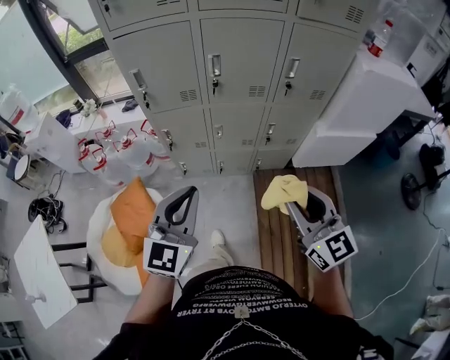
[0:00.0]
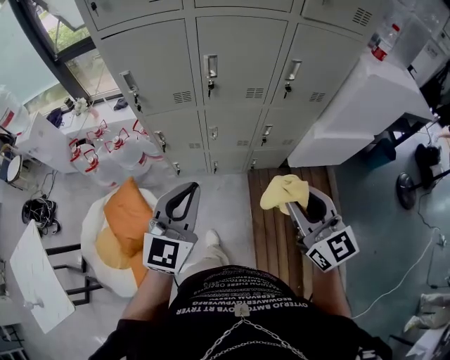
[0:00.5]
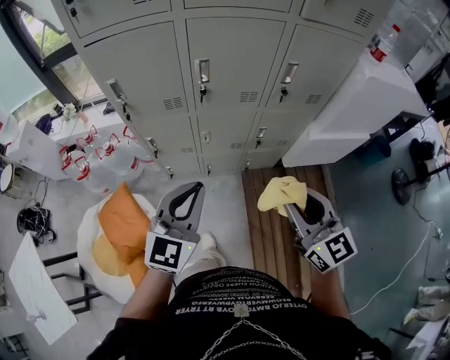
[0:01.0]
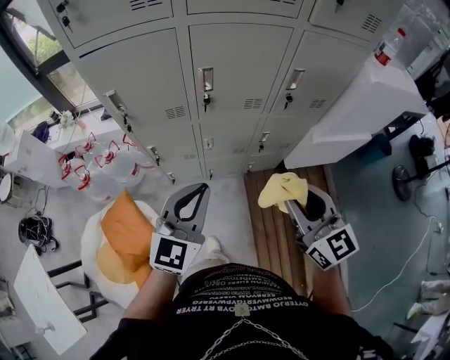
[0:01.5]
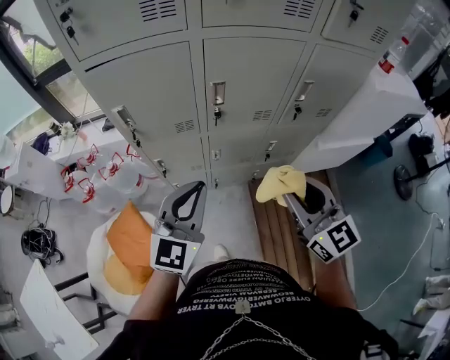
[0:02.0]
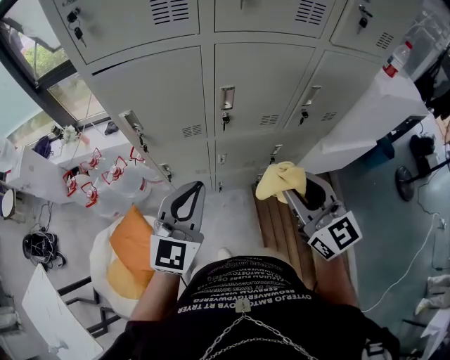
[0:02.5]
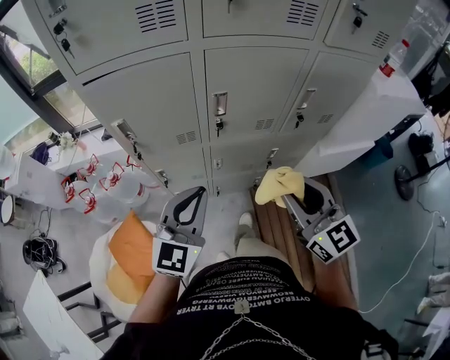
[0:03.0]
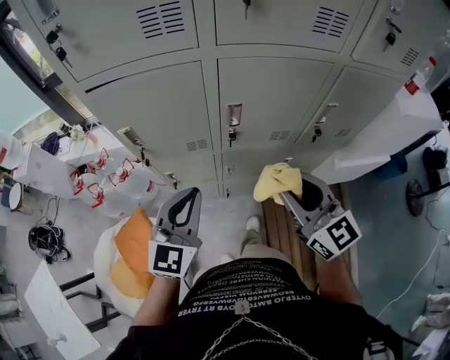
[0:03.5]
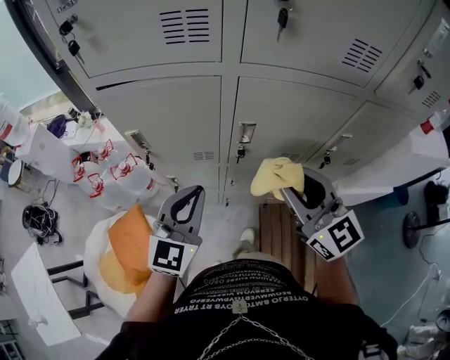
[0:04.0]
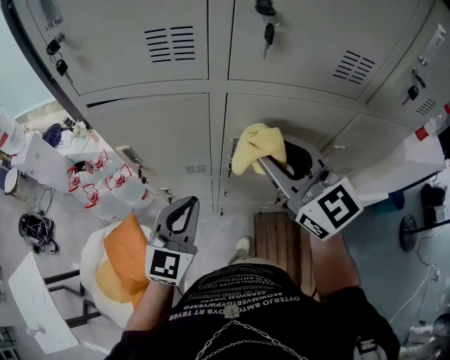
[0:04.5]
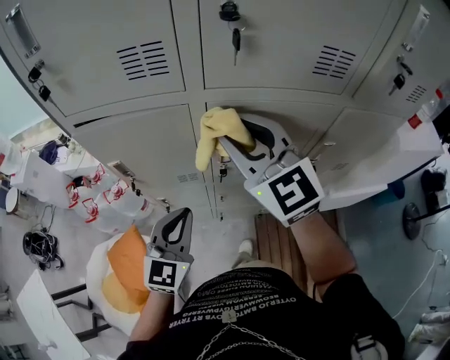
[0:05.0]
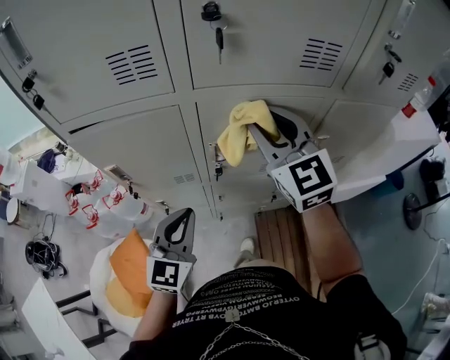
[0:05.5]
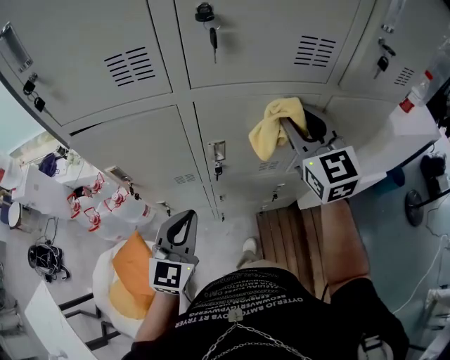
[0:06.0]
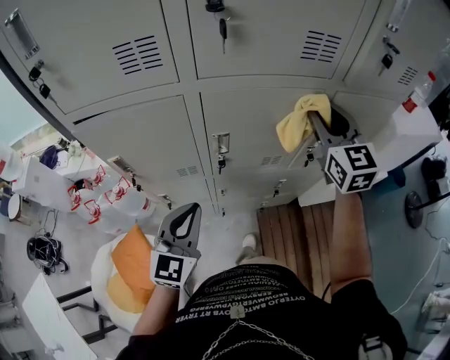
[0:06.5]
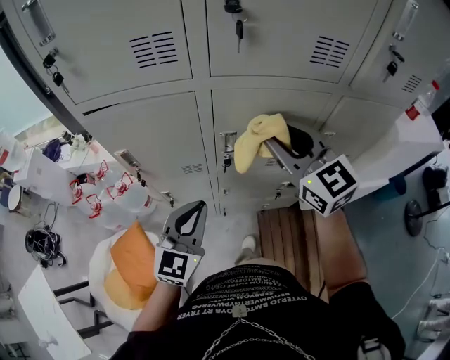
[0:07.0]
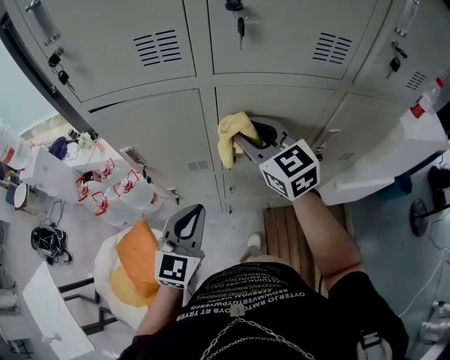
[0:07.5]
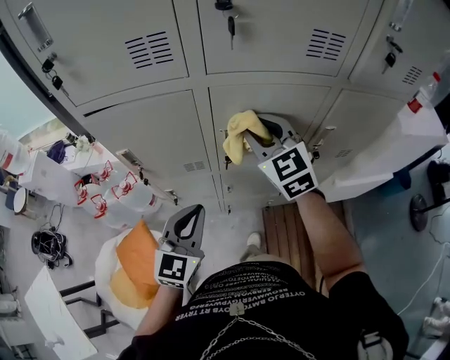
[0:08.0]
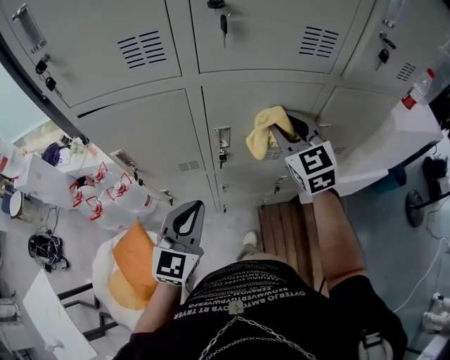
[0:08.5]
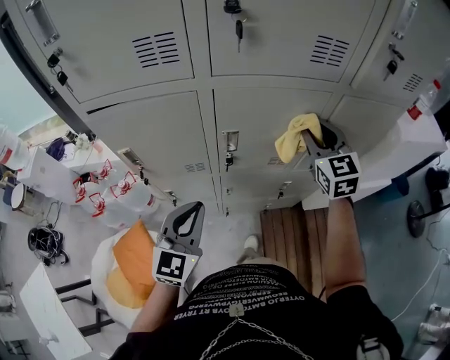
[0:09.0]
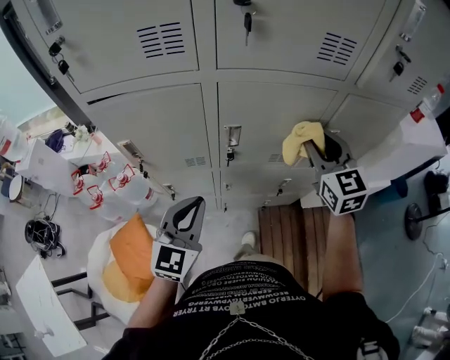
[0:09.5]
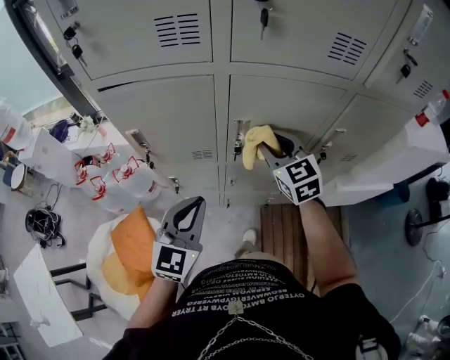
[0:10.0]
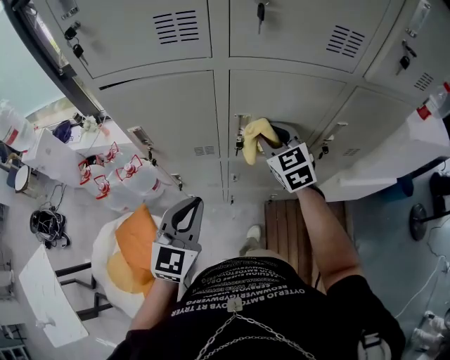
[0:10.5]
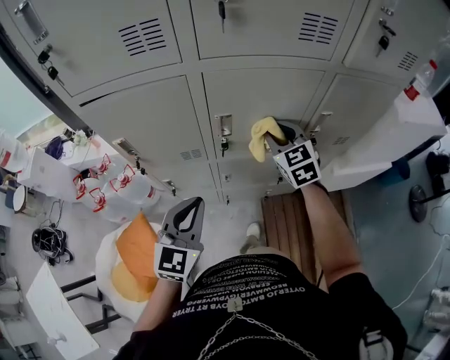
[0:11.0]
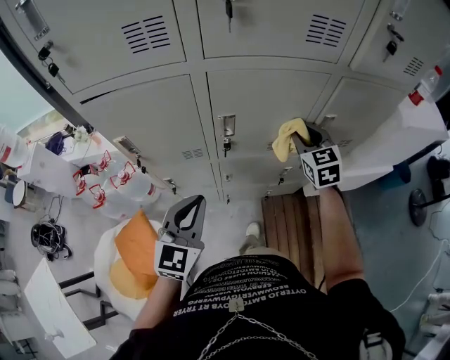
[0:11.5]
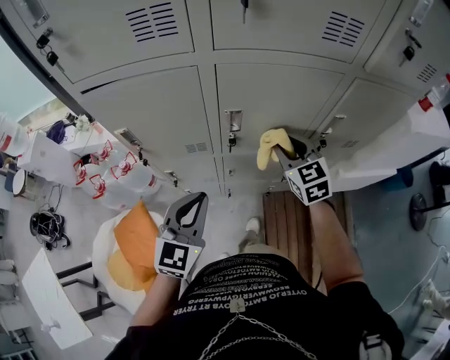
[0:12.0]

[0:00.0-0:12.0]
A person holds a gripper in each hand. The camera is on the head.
0:00.0 to 0:02.0: The two grippers go some 20 cm forward.
0:02.0 to 0:04.0: Both grippers travel together forward, some 15 cm.
0:04.0 to 0:06.0: The right gripper goes some 15 cm forward, to the right and upward, and swivels about 30 degrees.
0:06.0 to 0:08.0: The right gripper heads to the left and downward, covering roughly 15 cm.
0:08.0 to 0:10.0: The right gripper goes approximately 5 cm downward, and travels to the right and back again, some 15 cm each way.
0:10.0 to 0:12.0: The right gripper shifts about 10 cm to the right and downward.

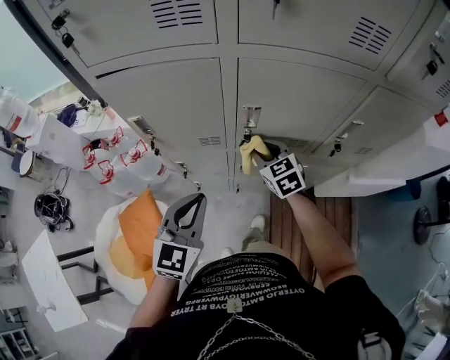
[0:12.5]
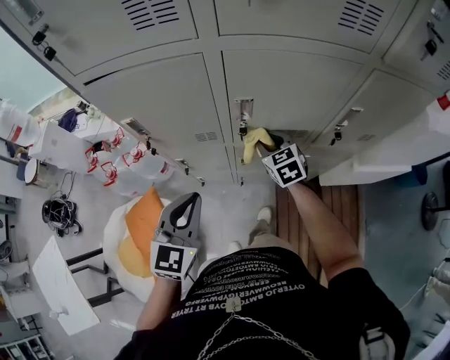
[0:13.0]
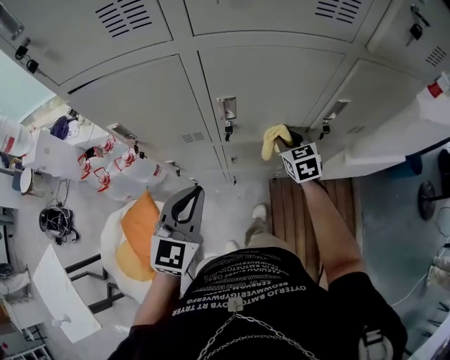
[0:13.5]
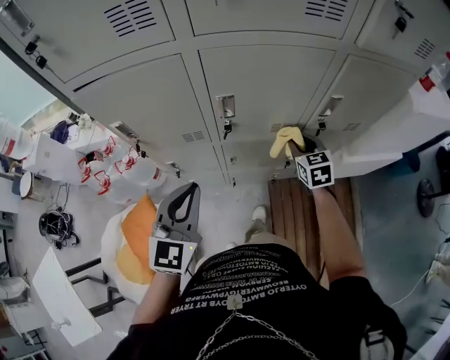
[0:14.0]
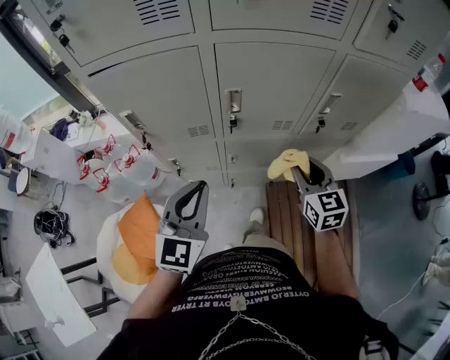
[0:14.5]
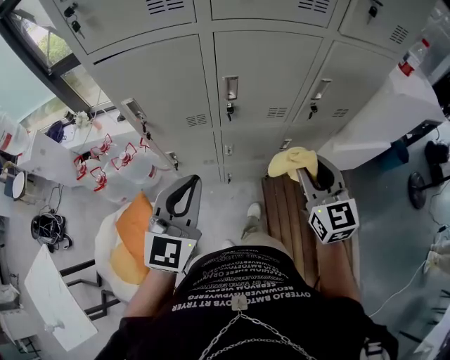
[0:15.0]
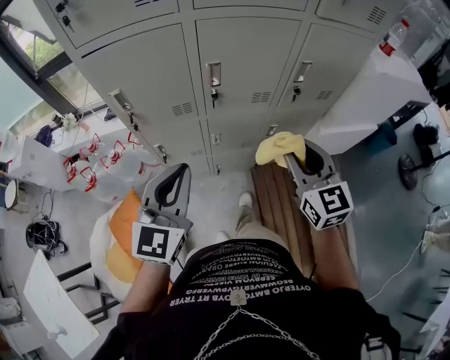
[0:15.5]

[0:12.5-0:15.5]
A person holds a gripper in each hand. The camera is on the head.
0:12.5 to 0:14.0: The right gripper moves to the right, about 20 cm, and rotates roughly 20 degrees.
0:14.0 to 0:15.5: The left gripper is displaced backward by roughly 10 cm; the right gripper moves backward and upward, some 30 cm, and turns by about 20 degrees.

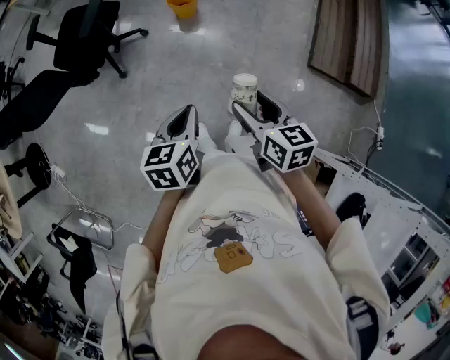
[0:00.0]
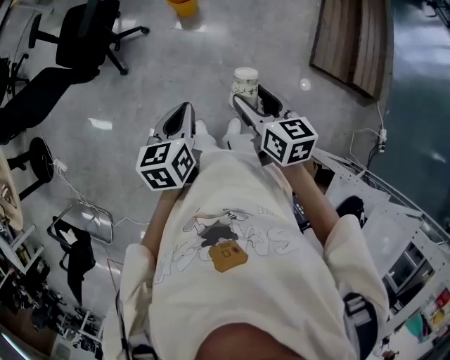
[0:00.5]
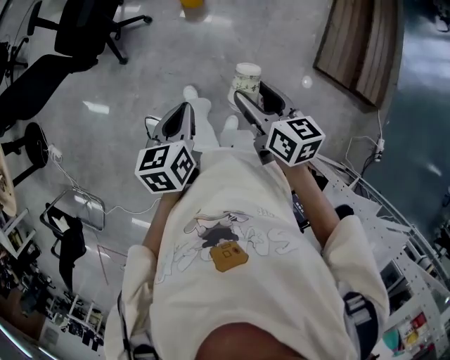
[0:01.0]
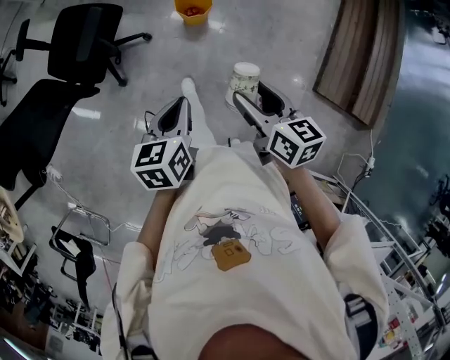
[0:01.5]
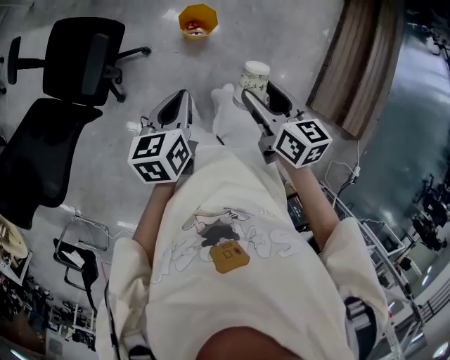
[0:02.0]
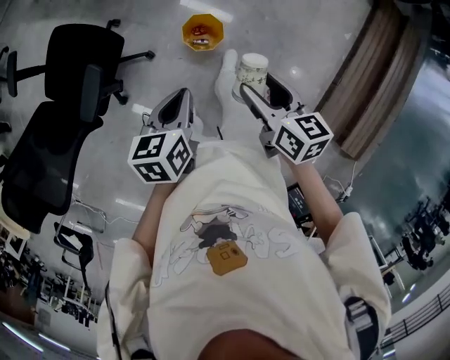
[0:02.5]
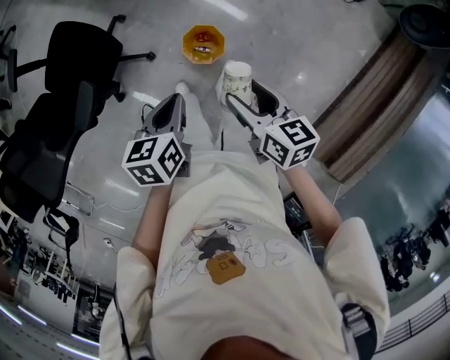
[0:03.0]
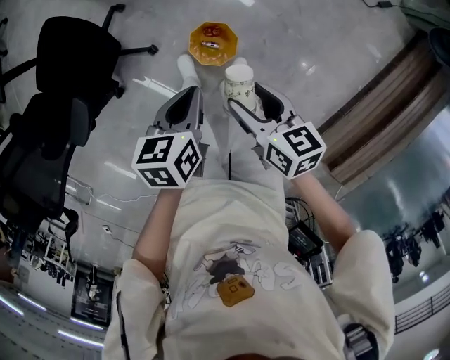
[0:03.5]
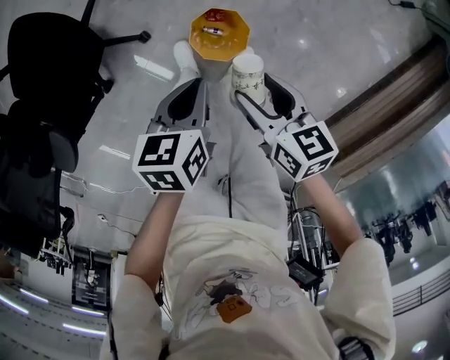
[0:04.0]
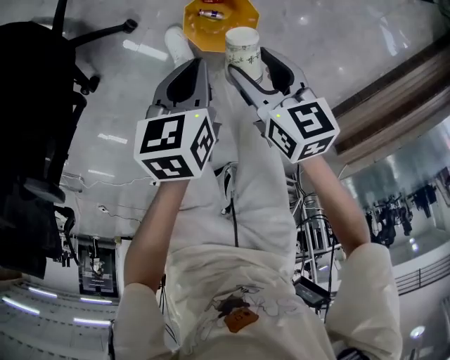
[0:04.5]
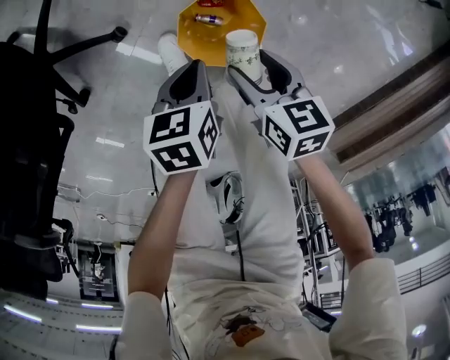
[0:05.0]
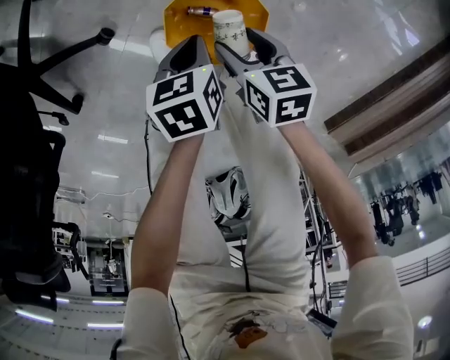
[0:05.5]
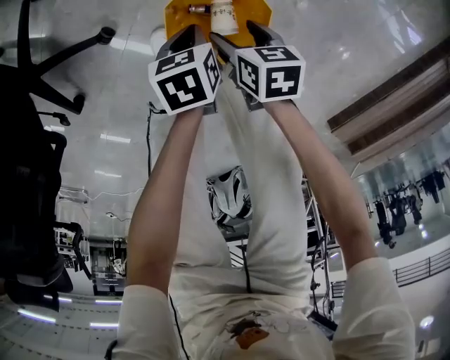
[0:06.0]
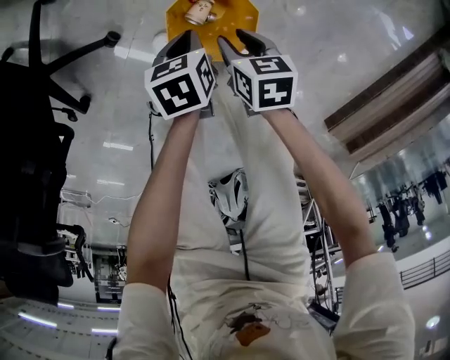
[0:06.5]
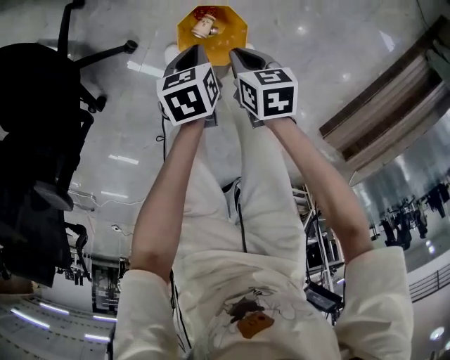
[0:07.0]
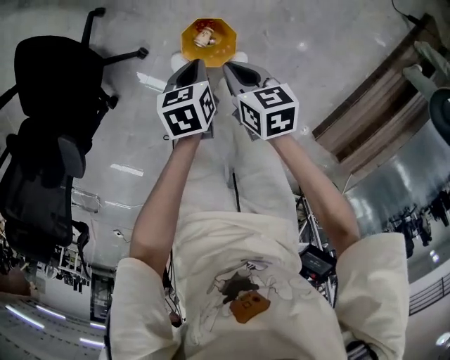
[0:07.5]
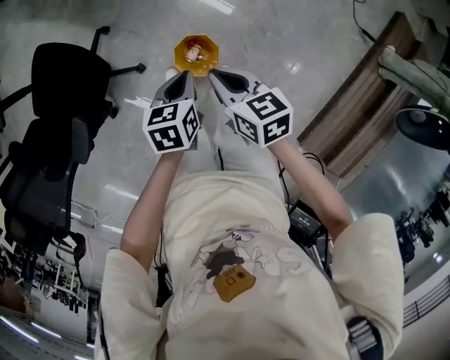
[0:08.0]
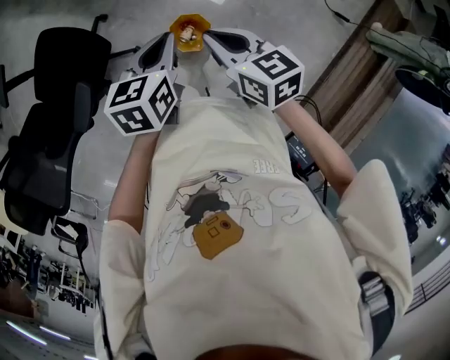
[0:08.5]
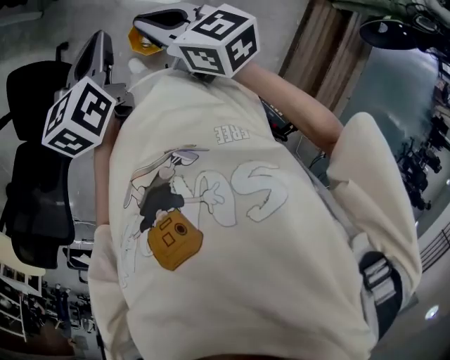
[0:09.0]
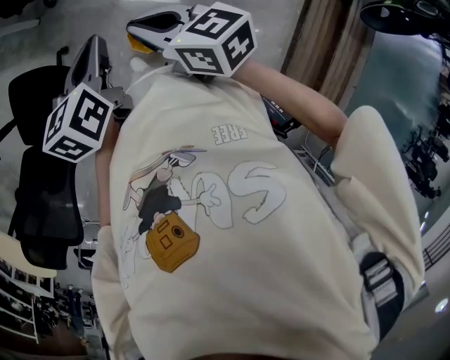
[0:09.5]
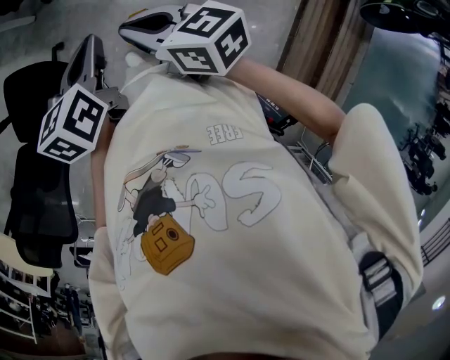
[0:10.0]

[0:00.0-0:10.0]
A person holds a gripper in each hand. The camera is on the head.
0:00.0 to 0:02.0: The two grippers travel together, forward, about 50 cm.
0:02.0 to 0:04.0: The grippers both shift forward and downward by approximately 50 cm. The left gripper rotates about 20 degrees; the right gripper rotates about 30 degrees.
0:04.0 to 0:06.0: The two grippers go some 40 cm downward. The right gripper rotates roughly 20 degrees.
0:06.0 to 0:08.0: The grippers both shift upward by roughly 50 cm. The right gripper turns by roughly 30 degrees, and closes; the left gripper turns by roughly 20 degrees.
0:08.0 to 0:10.0: Both grippers travel together upward, about 20 cm.

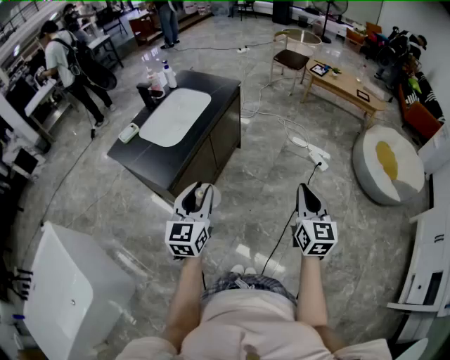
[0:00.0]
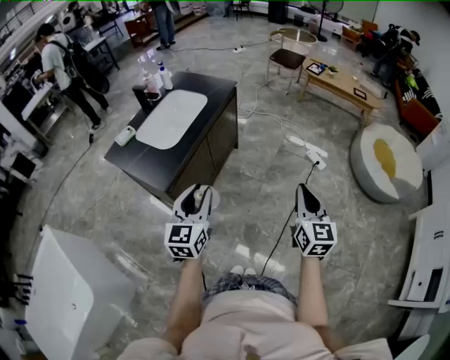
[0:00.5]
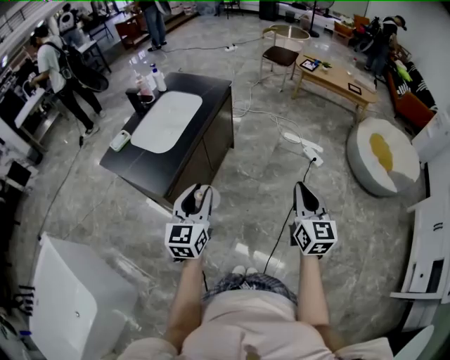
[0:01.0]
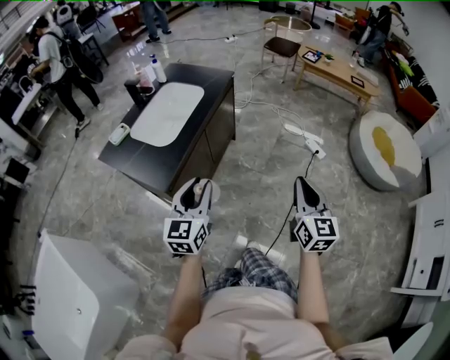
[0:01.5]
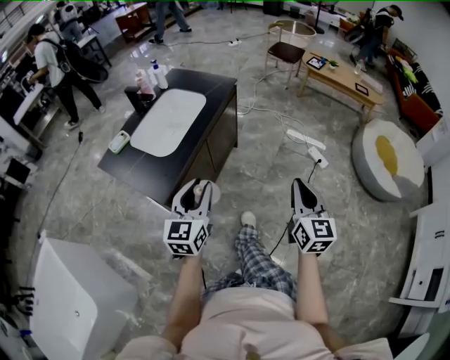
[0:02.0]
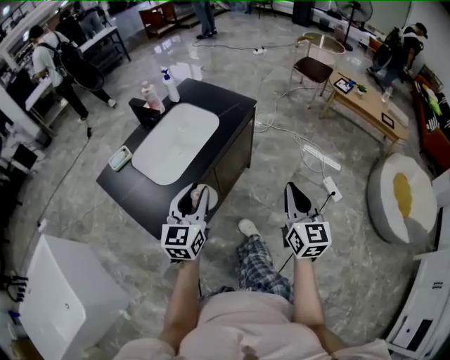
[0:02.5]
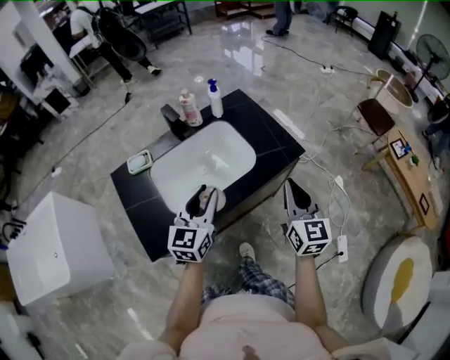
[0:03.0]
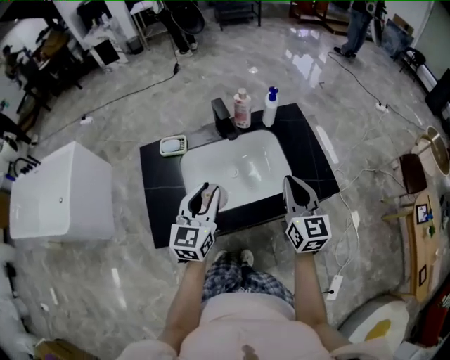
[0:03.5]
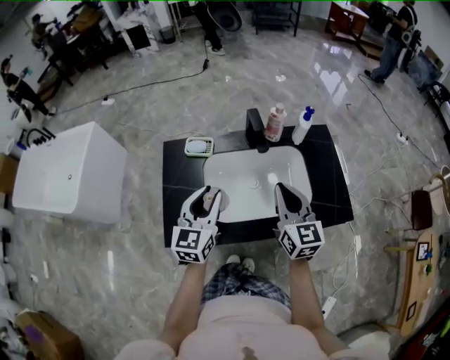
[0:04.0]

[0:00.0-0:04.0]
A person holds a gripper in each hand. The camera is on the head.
0:00.0 to 0:02.0: The two grippers go roughly 10 cm forward.
0:02.0 to 0:04.0: The two grippers travel together, about 60 cm. The right gripper changes its angle by about 70 degrees; the left gripper rotates approximately 60 degrees.
